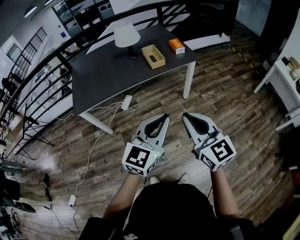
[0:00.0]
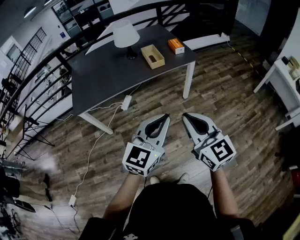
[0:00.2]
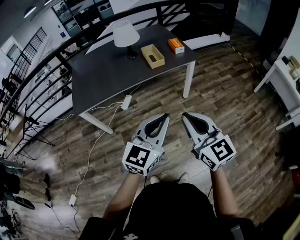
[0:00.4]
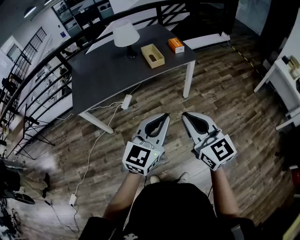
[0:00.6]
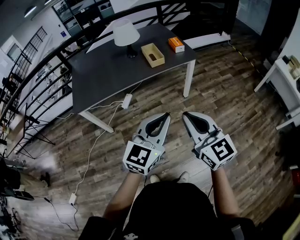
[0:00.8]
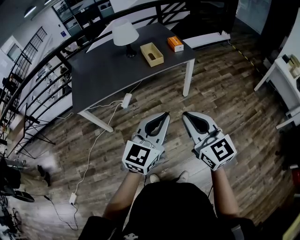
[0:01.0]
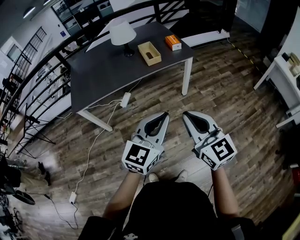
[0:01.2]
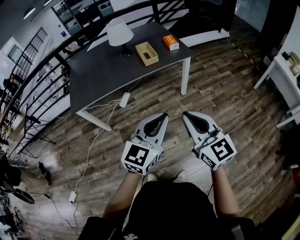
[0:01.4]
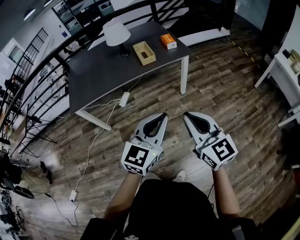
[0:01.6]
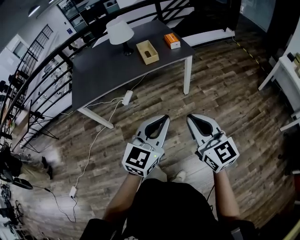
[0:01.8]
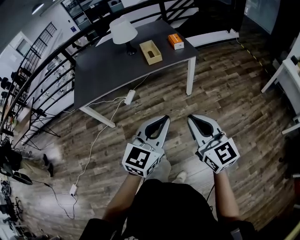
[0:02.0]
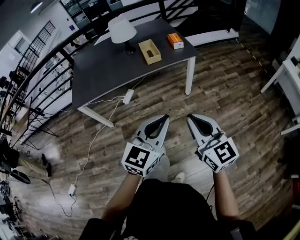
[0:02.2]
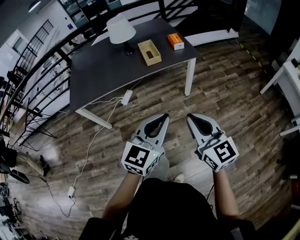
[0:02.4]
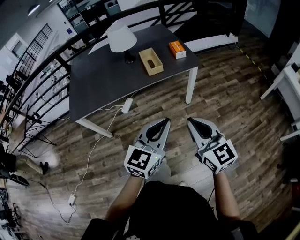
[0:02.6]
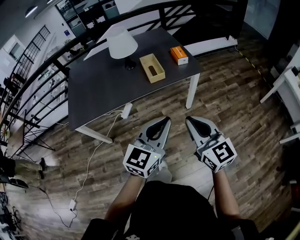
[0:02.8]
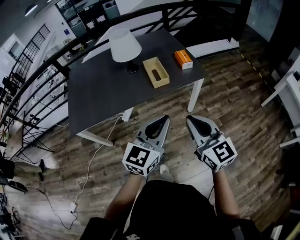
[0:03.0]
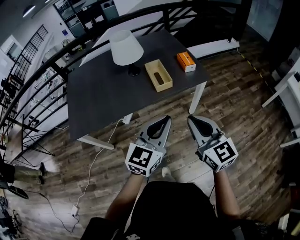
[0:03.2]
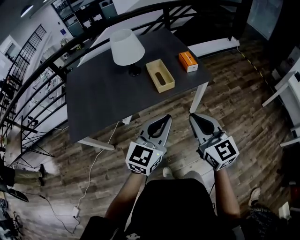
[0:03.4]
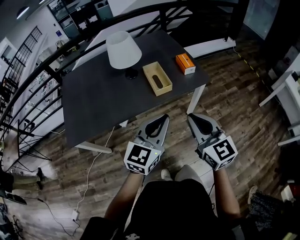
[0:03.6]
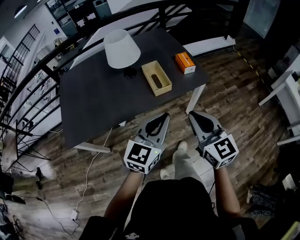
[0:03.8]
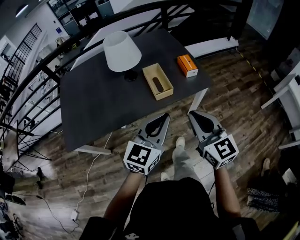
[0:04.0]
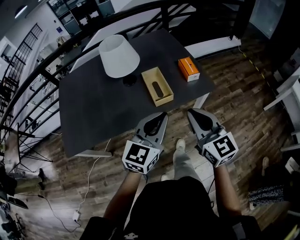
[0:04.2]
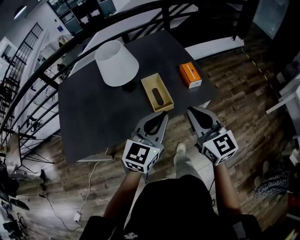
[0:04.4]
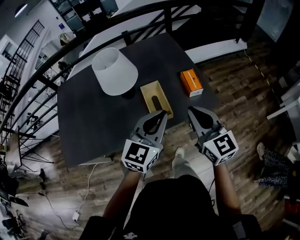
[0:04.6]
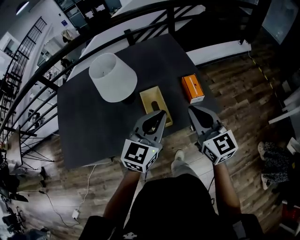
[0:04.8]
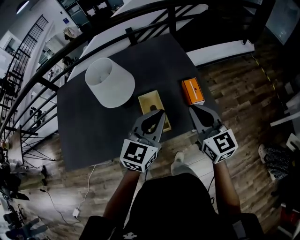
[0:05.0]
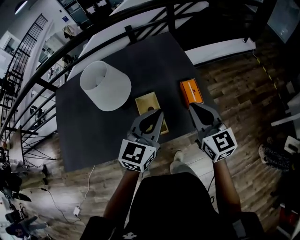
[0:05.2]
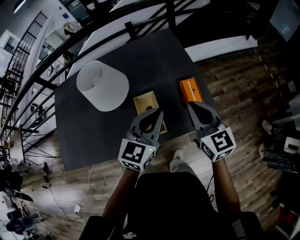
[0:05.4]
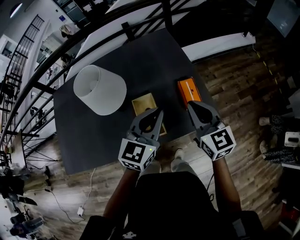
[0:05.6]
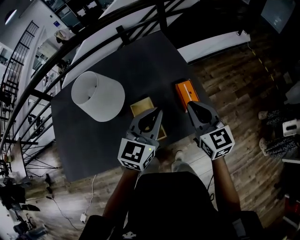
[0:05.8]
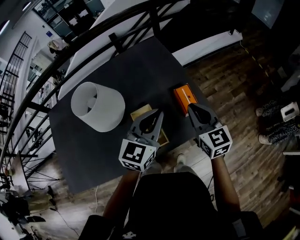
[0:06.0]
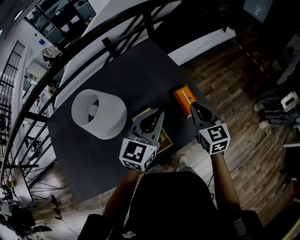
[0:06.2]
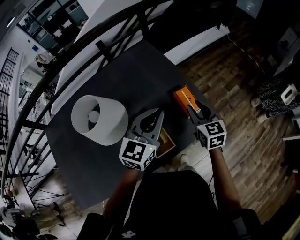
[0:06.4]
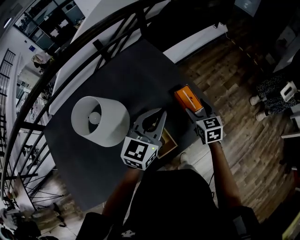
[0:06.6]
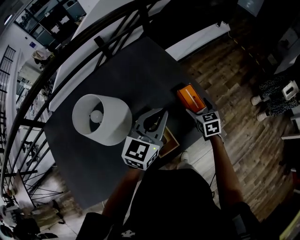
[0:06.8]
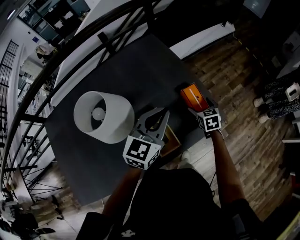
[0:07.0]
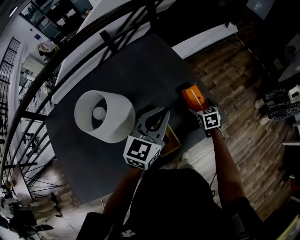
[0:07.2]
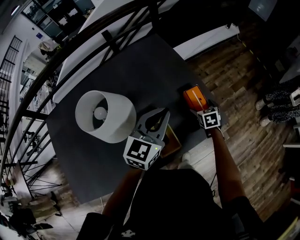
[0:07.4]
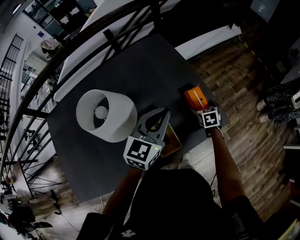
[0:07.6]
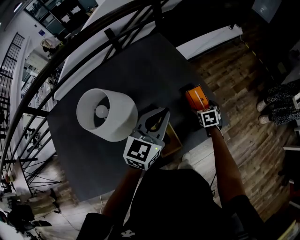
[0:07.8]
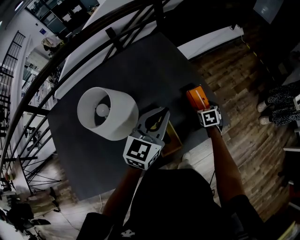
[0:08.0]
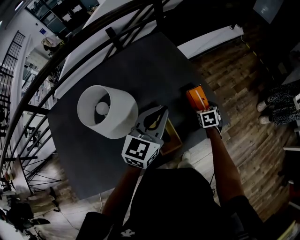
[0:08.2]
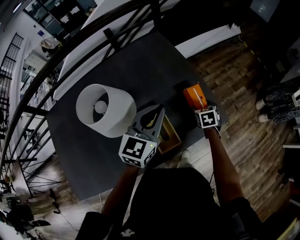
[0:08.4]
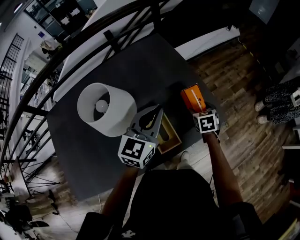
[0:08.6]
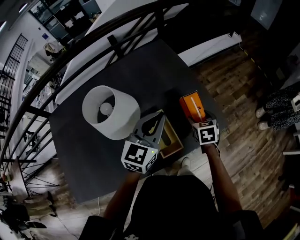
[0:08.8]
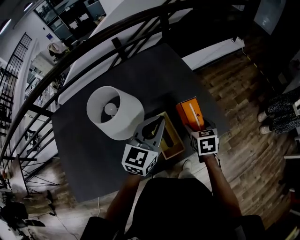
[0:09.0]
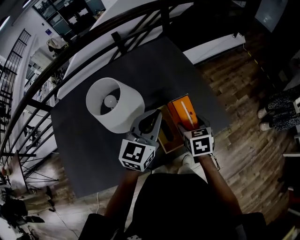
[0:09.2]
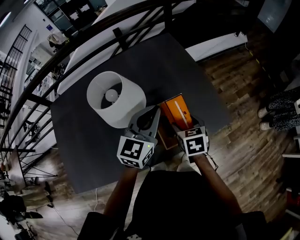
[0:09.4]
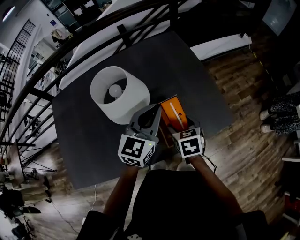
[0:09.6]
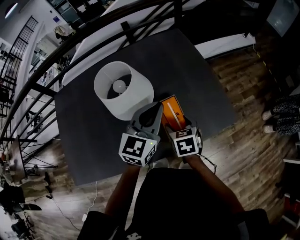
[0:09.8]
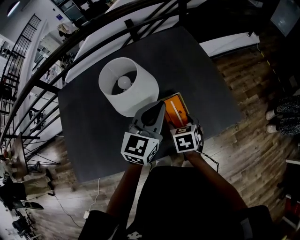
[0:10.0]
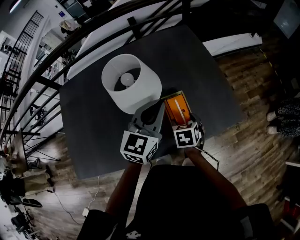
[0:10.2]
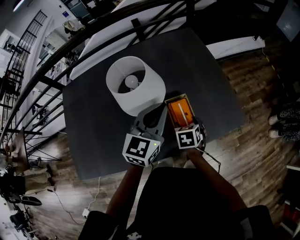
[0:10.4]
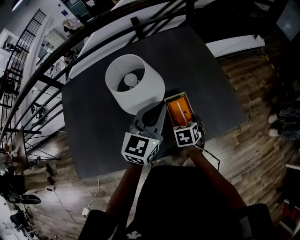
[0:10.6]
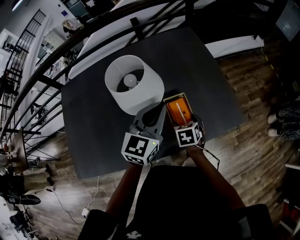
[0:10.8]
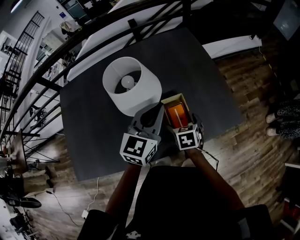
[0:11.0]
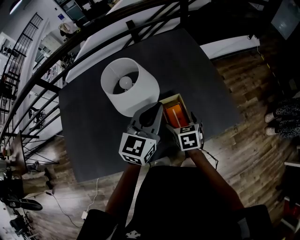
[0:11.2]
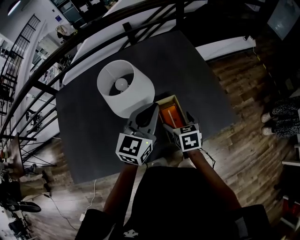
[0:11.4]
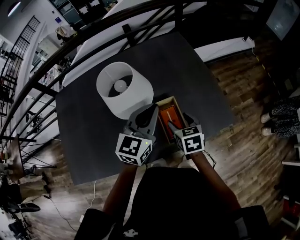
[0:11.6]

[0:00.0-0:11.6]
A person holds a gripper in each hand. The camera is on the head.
0.0 to 1.4 s: The grippers both shift to the right by about 5 cm.
1.4 to 2.8 s: The two grippers go about 15 cm forward.
2.8 to 4.4 s: Both grippers move forward, roughly 30 cm.
4.4 to 5.8 s: The two grippers go some 20 cm forward.
5.8 to 7.2 s: The left gripper is displaced forward by roughly 5 cm; the right gripper heads downward and forward, covering approximately 25 cm, points its fingers roughly 40 degrees further downward, and opens its fingers.
7.2 to 8.8 s: The right gripper heads upward and backward, covering approximately 10 cm.
8.8 to 10.2 s: The right gripper travels to the left and backward by some 20 cm; the left gripper is displaced to the left by some 10 cm.
10.2 to 11.6 s: The right gripper shifts roughly 5 cm upward, and opens, then closes once more.

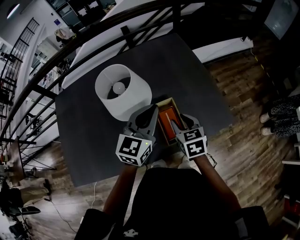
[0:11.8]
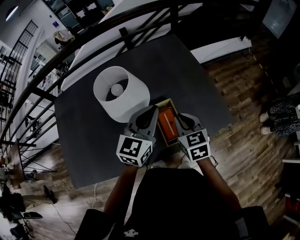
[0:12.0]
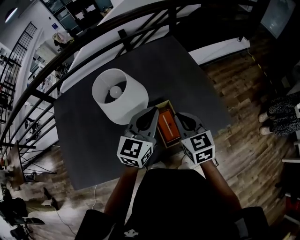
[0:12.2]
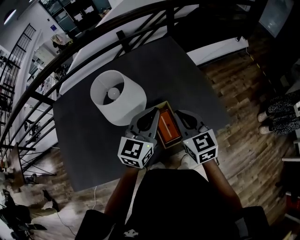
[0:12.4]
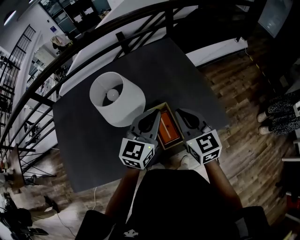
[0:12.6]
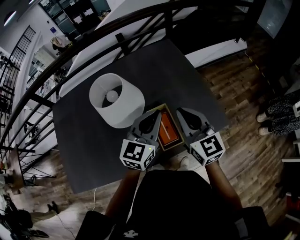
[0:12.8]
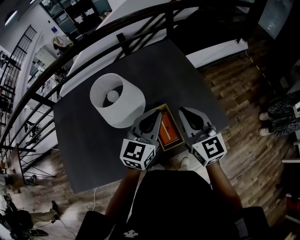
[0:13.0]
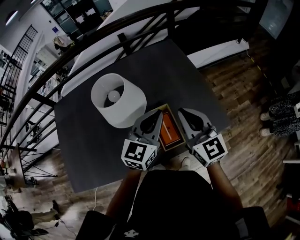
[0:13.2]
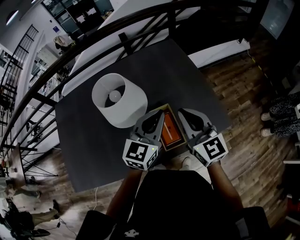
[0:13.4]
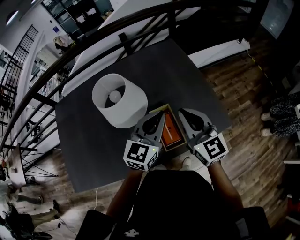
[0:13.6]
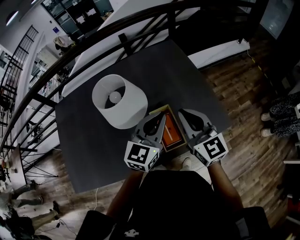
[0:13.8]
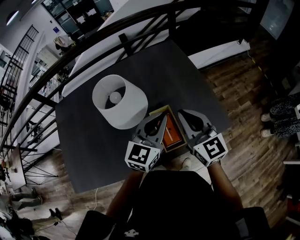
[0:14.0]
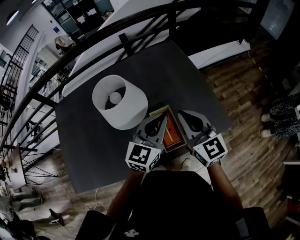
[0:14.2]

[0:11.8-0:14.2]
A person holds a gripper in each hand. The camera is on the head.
11.8 to 13.0 s: The right gripper heads upward, covering roughly 15 cm, and tilts its fingers some 40 degrees upward.
13.0 to 14.2 s: The two grippers keep their place.

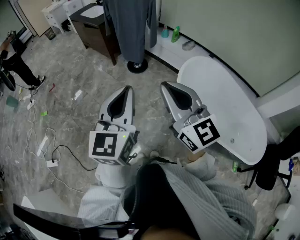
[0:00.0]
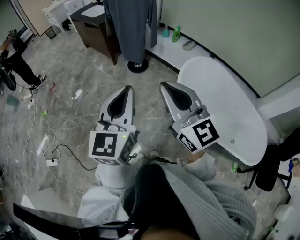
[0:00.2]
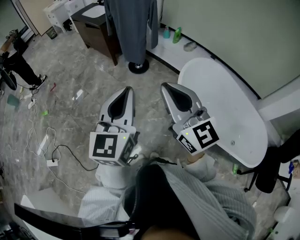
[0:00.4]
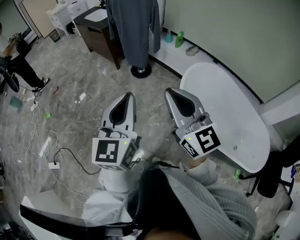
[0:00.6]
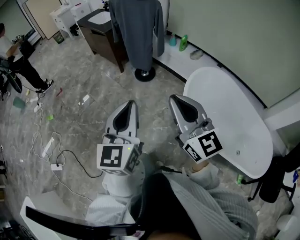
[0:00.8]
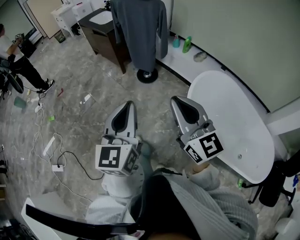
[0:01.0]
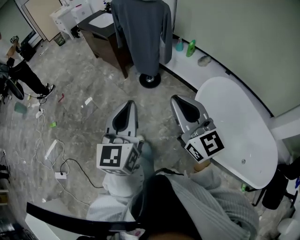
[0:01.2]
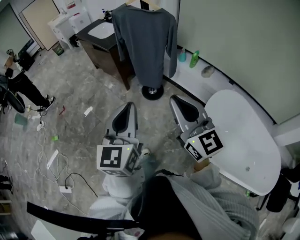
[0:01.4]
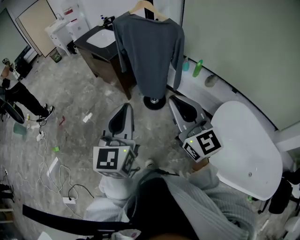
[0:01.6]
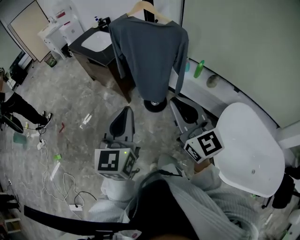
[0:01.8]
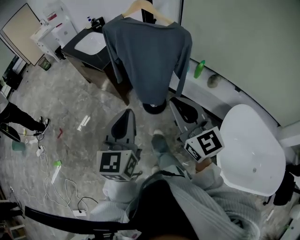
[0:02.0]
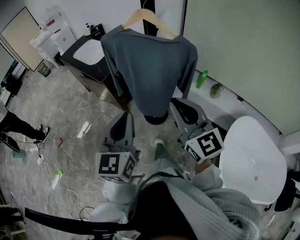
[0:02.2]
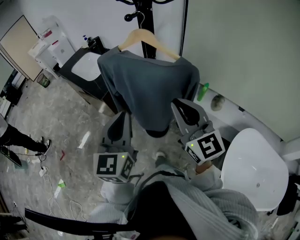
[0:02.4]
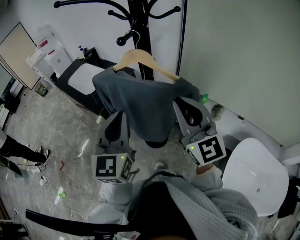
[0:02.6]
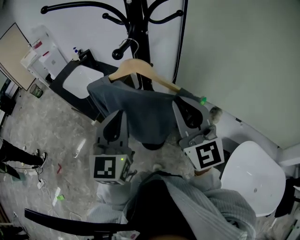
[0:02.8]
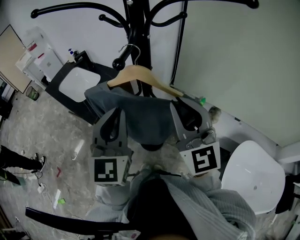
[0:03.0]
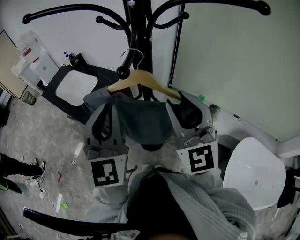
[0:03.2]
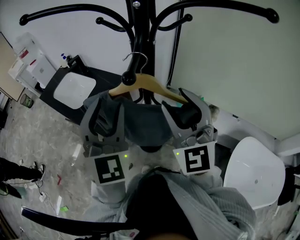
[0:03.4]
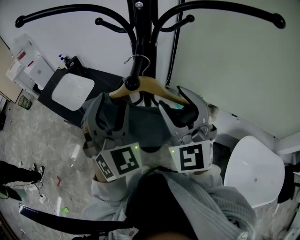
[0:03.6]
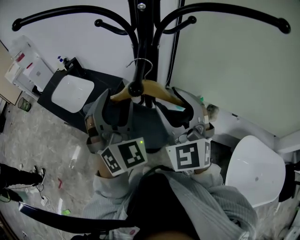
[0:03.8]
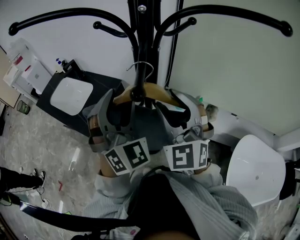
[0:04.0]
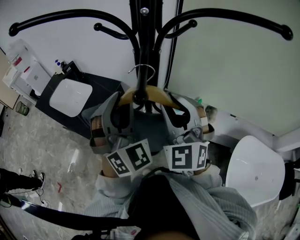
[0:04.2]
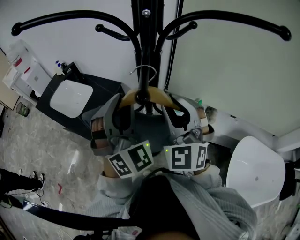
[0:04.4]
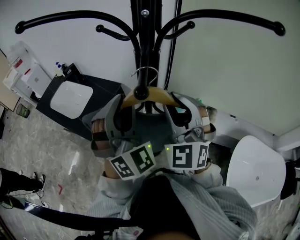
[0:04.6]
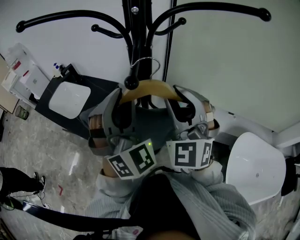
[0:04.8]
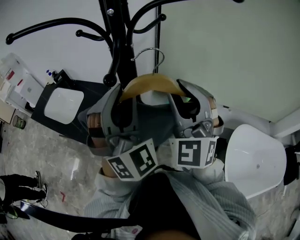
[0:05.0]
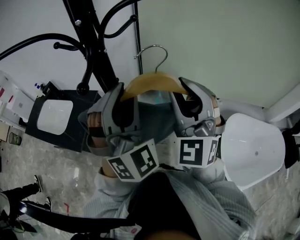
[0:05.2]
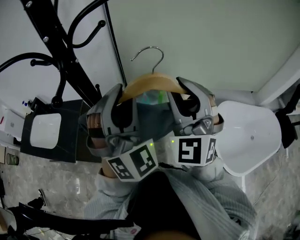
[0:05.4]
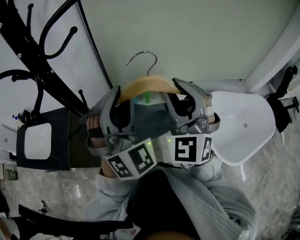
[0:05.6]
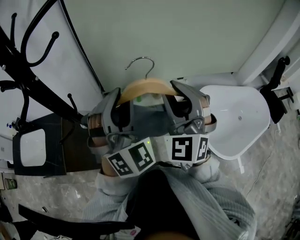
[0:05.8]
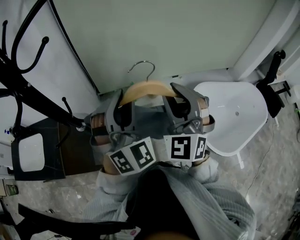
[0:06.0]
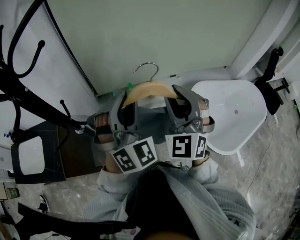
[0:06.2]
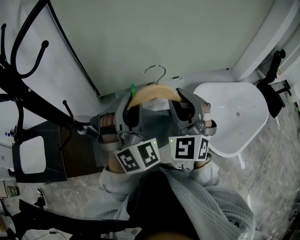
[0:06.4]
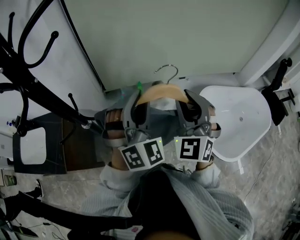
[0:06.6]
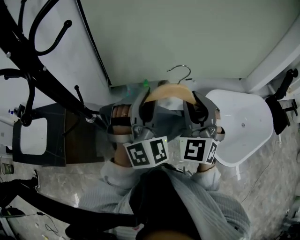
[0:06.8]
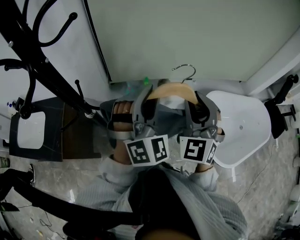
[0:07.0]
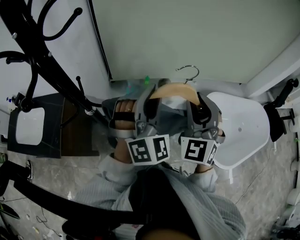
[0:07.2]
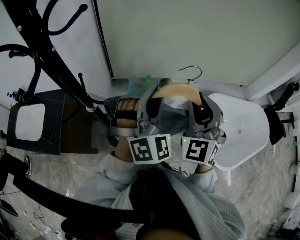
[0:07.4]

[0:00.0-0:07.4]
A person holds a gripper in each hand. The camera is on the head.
0.0 to 1.4 s: The grippers both shift forward by approximately 30 cm.
1.4 to 3.0 s: The two grippers travel together, forward, approximately 60 cm. The right gripper turns by approximately 30 degrees.
3.0 to 4.4 s: The two grippers go approximately 10 cm forward. The left gripper rolls clockwise, seen from behind, by about 40 degrees, and opens its fingers. Meanwhile the right gripper turns by approximately 30 degrees, and opens.
4.4 to 6.0 s: The left gripper moves approximately 5 cm upward and comes back, and swivels about 40 degrees; the right gripper moves some 30 cm, and swivels approximately 40 degrees.
6.0 to 7.4 s: There are only small adjustments of the grippers.

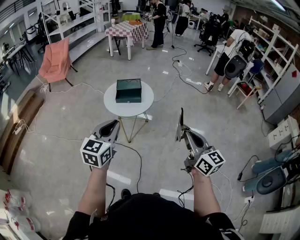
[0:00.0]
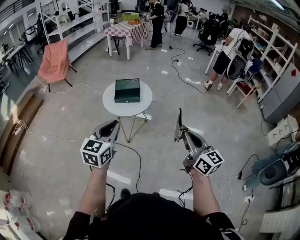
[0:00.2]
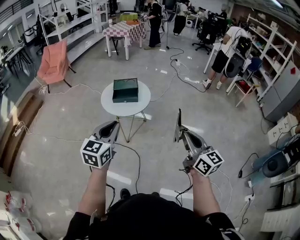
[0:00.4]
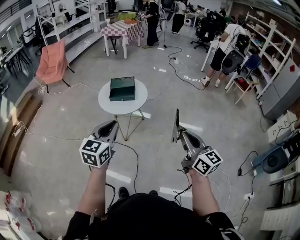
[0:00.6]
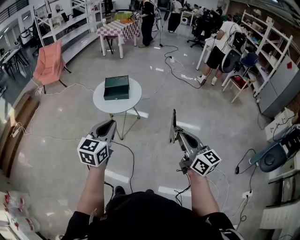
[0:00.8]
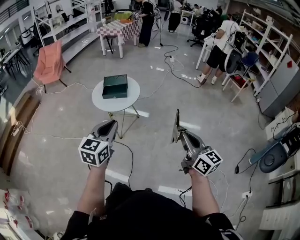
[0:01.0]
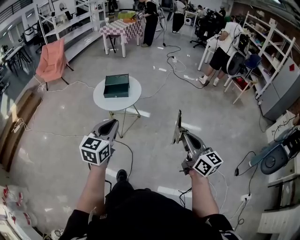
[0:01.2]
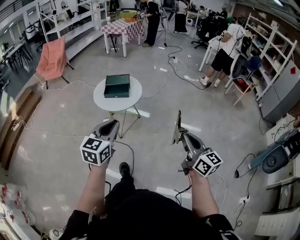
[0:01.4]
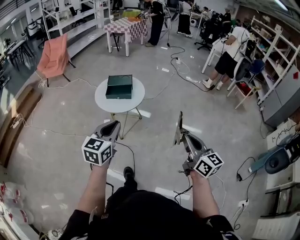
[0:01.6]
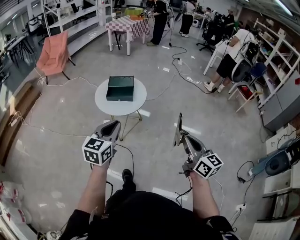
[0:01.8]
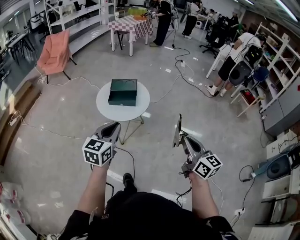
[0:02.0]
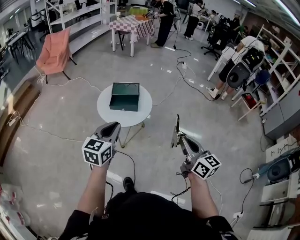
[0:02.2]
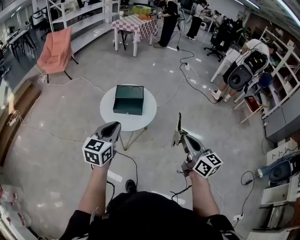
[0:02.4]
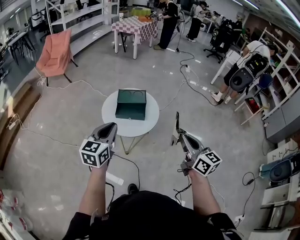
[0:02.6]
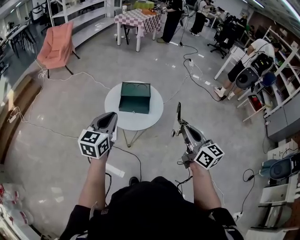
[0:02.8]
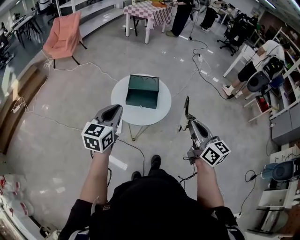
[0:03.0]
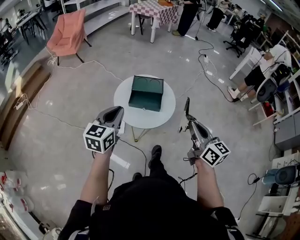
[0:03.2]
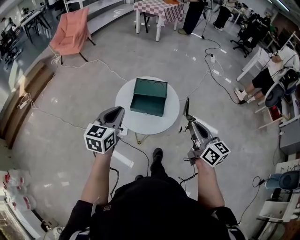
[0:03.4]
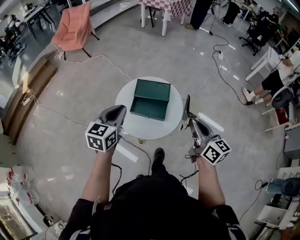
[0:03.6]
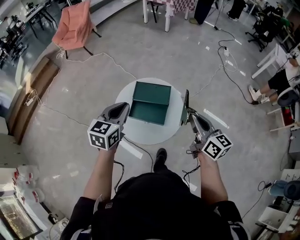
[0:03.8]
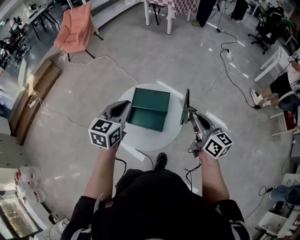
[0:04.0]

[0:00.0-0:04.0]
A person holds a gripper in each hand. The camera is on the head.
0.0 to 1.4 s: The two grippers go some 10 cm to the right.
1.4 to 2.6 s: The grippers both shift forward and to the left by approximately 25 cm.
2.6 to 4.0 s: The grippers both shift forward by approximately 30 cm.
